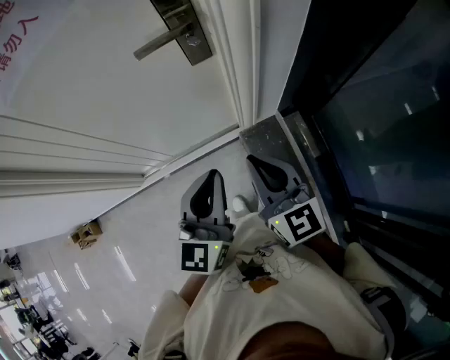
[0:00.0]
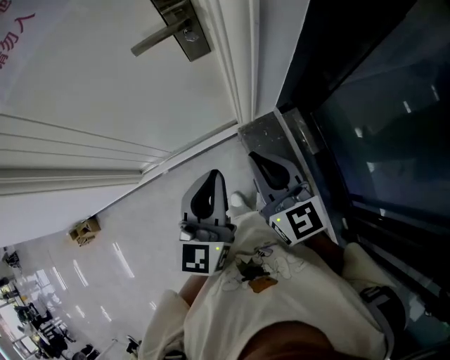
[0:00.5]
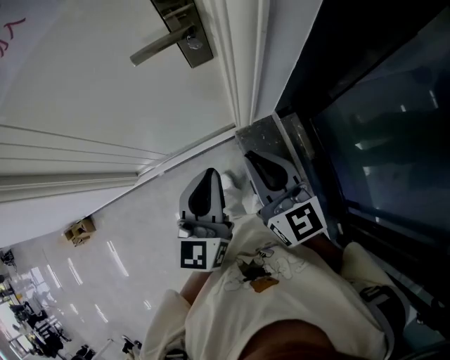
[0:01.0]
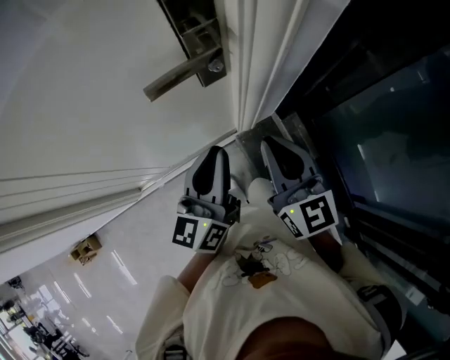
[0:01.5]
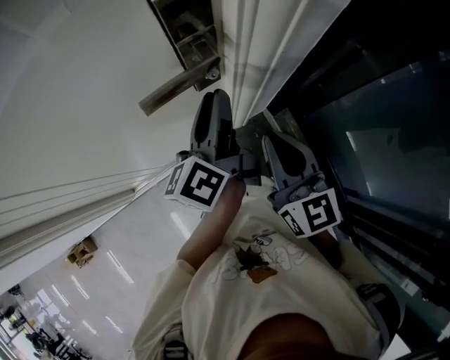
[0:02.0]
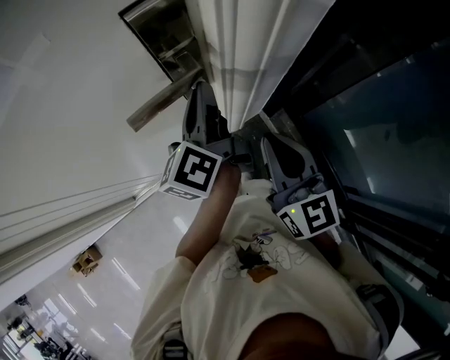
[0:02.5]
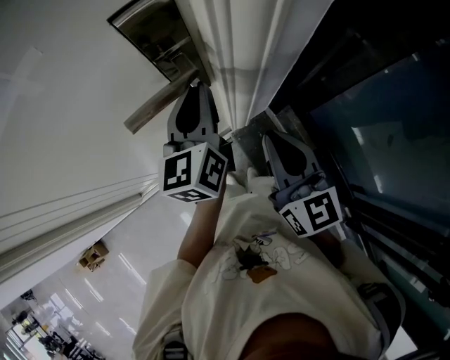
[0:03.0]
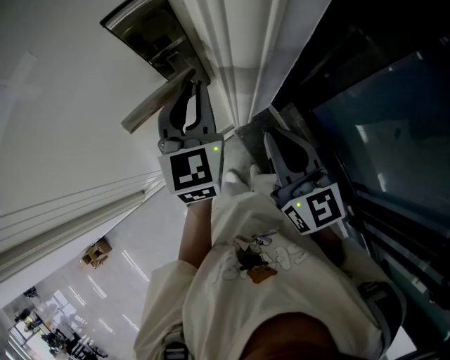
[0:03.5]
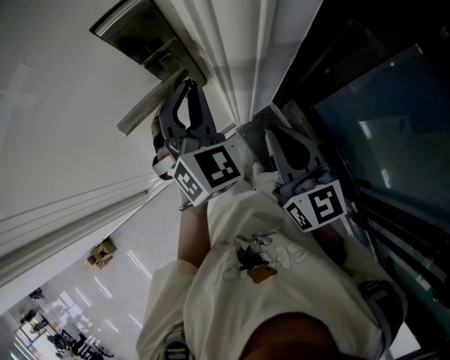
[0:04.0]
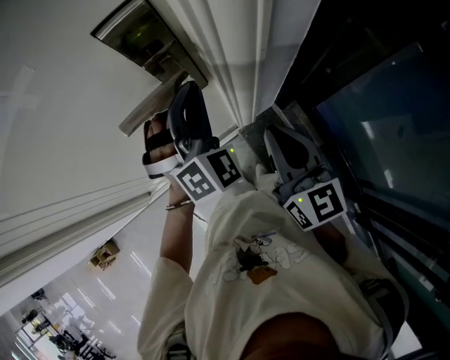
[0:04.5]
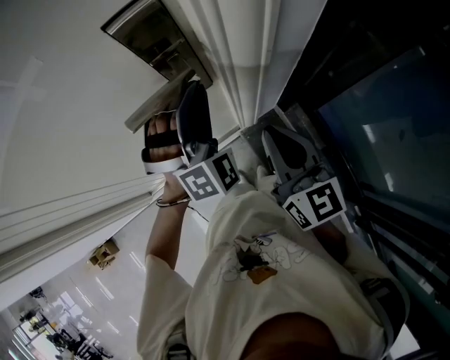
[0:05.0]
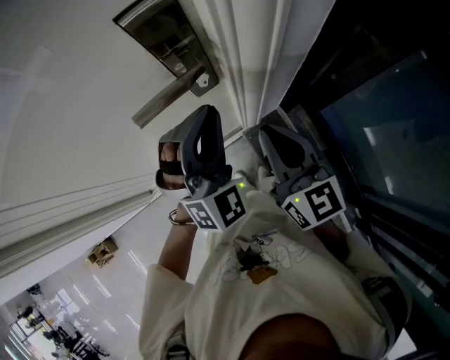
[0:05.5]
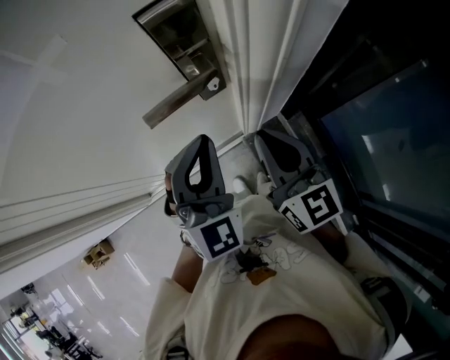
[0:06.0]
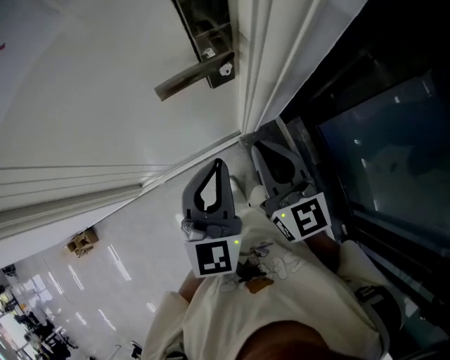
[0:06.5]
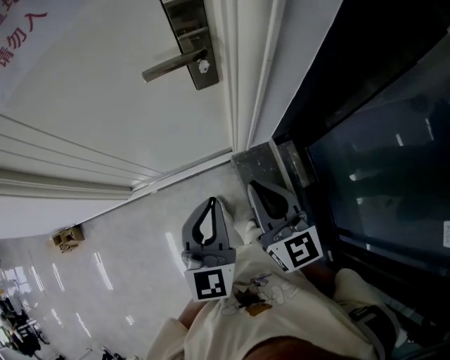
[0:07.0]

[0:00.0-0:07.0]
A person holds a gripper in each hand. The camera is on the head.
0:00.0 to 0:02.0: The right gripper is displaced forward by roughly 15 cm, while the left gripper heads forward, covering about 30 cm, rotates around the line of its fingers by about 50 degrees, counterclockwise from behind, and opens up.
0:02.0 to 0:03.5: The left gripper rotates around the line of its fingers by some 60 degrees, clockwise from behind.
0:03.5 to 0:05.0: The left gripper twists some 60 degrees clockwise, seen from behind.
0:05.0 to 0:07.0: The right gripper moves backward, approximately 15 cm, while the left gripper travels backward by about 25 cm, and twists some 70 degrees counterclockwise, seen from behind.

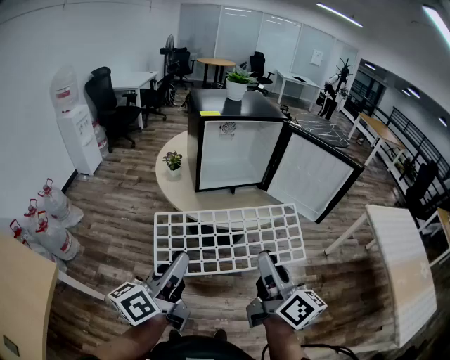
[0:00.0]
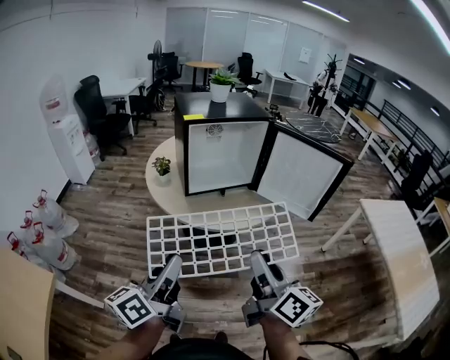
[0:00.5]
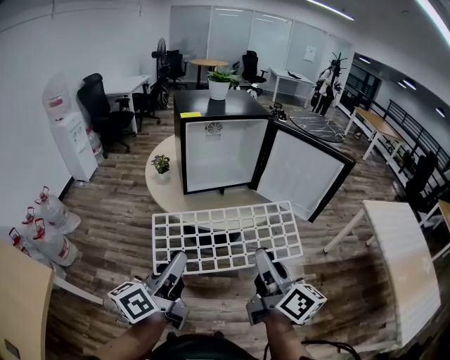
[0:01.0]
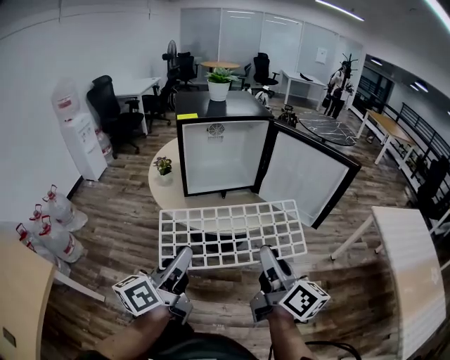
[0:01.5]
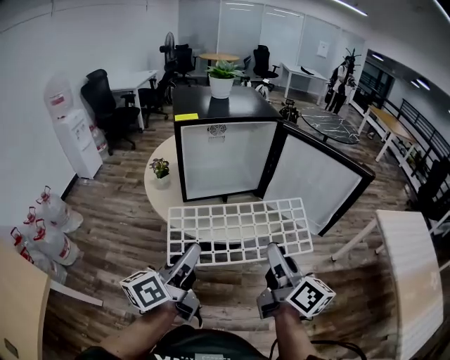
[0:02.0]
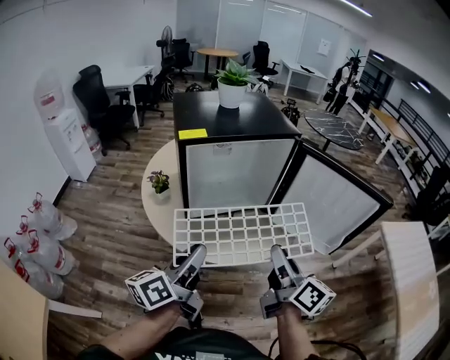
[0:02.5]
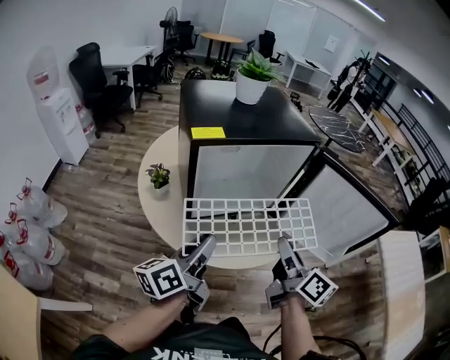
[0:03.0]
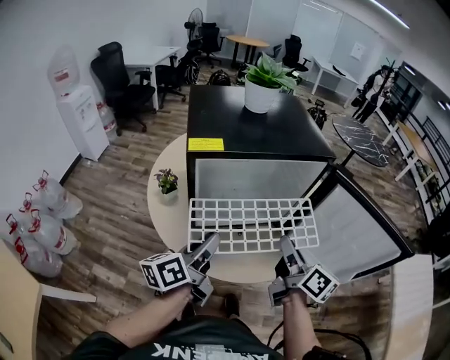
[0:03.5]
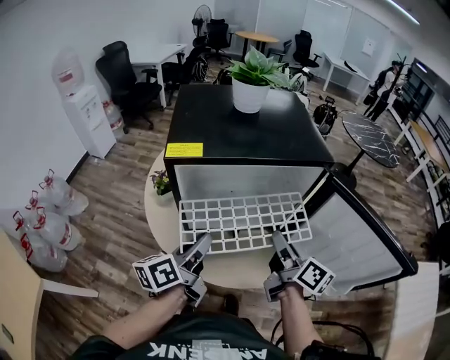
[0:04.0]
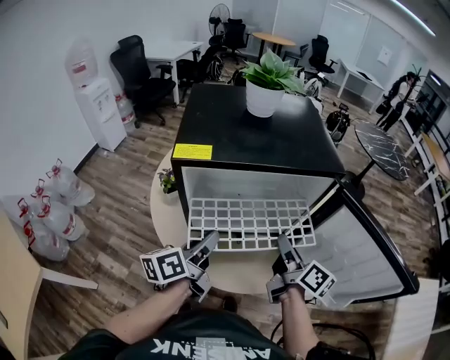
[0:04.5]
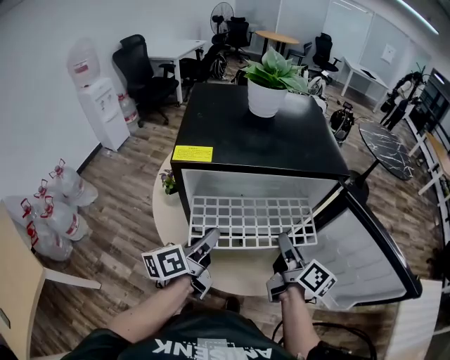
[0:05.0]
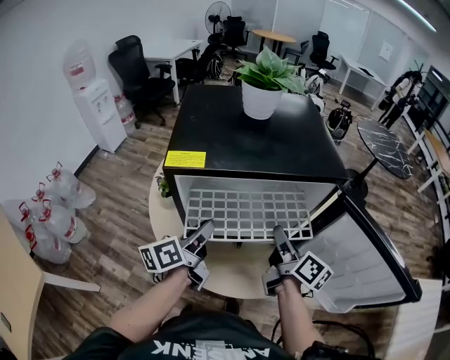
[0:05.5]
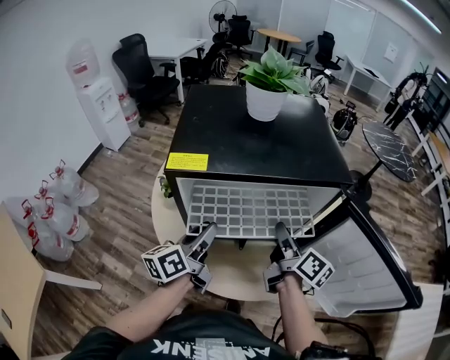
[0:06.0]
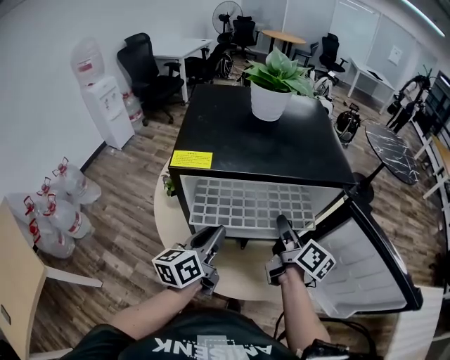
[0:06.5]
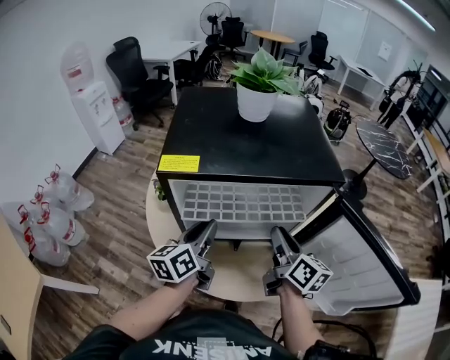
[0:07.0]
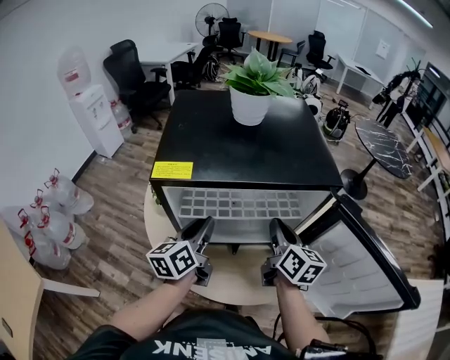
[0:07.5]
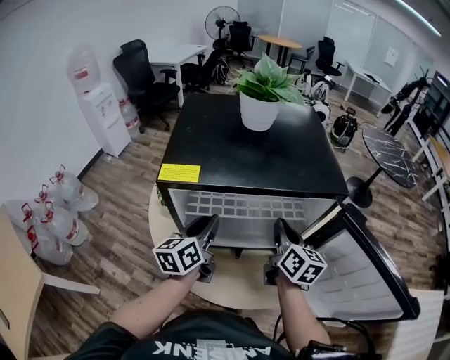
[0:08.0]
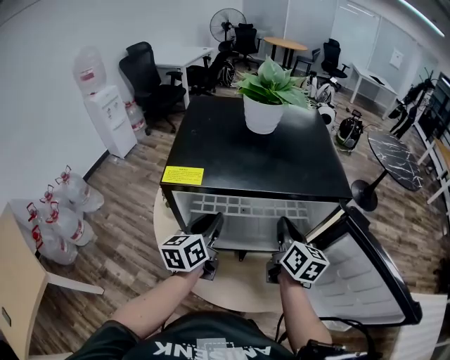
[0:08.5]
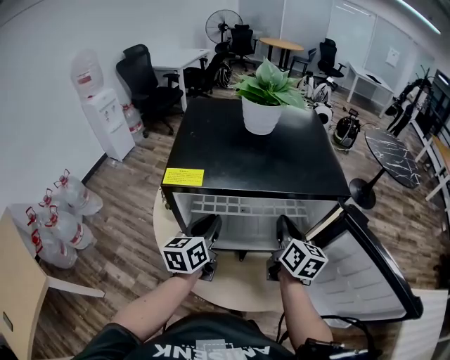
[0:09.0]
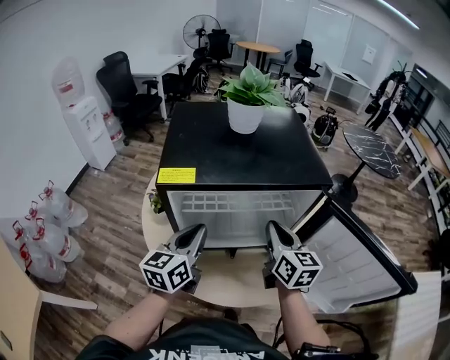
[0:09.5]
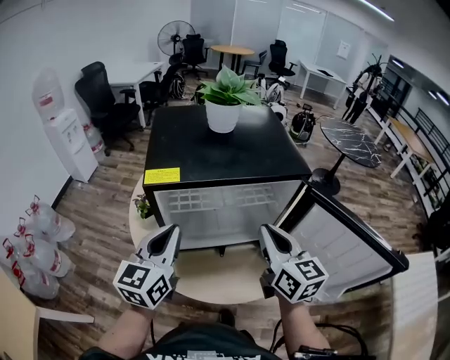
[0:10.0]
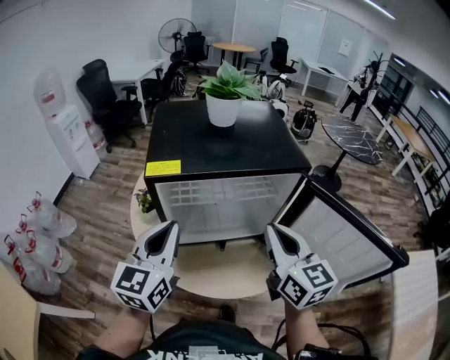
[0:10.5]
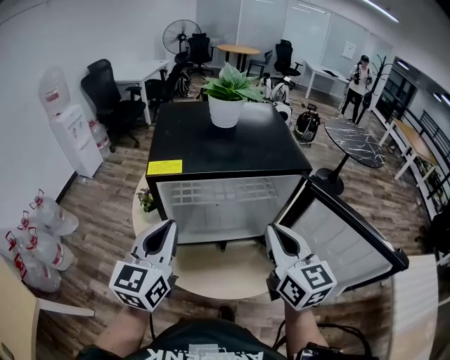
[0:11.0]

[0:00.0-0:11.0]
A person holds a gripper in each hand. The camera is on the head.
0:00.0 to 0:02.0: The two grippers go roughly 20 cm forward and to the right.
0:02.0 to 0:03.5: Both grippers travel together forward, some 25 cm.
0:03.5 to 0:05.5: The right gripper heads forward and downward, covering about 15 cm. The left gripper is displaced forward by roughly 10 cm.
0:05.5 to 0:07.5: The left gripper rotates approximately 20 degrees. The right gripper changes place by some 5 cm, and changes its angle by about 20 degrees.
0:07.5 to 0:09.0: There are only small adjustments of the grippers.
0:09.0 to 0:11.0: The right gripper is displaced backward and upward by about 20 cm, and turns by about 20 degrees. Meanwhile the left gripper goes some 20 cm upward and backward, and swivels roughly 20 degrees.

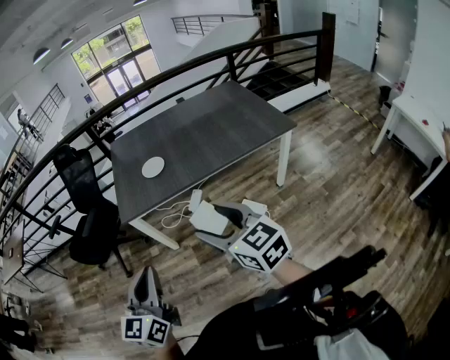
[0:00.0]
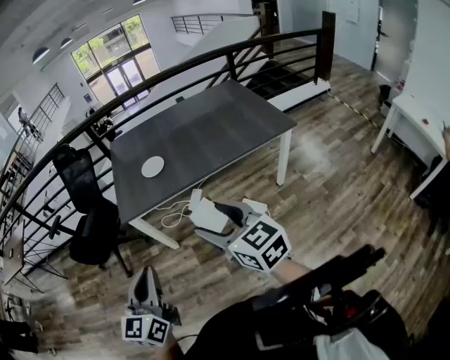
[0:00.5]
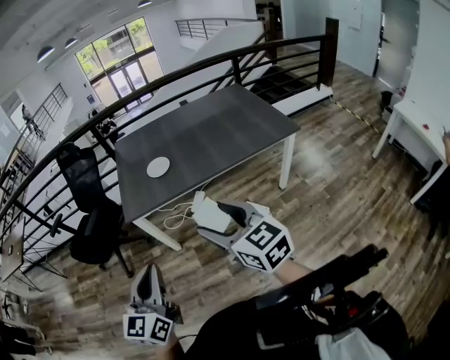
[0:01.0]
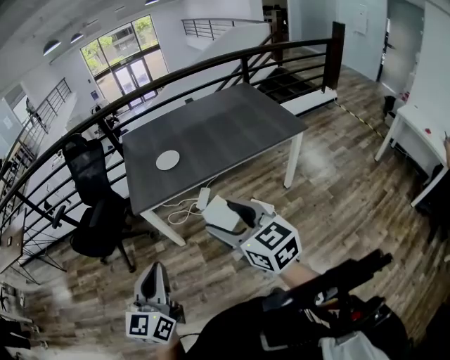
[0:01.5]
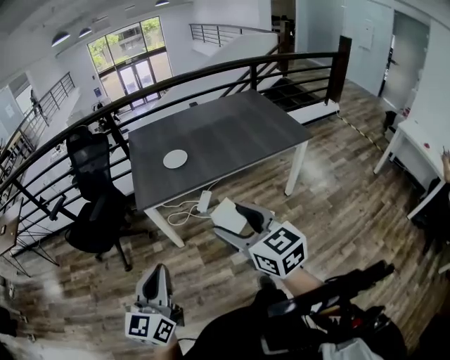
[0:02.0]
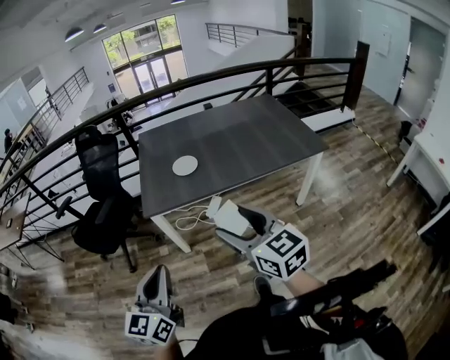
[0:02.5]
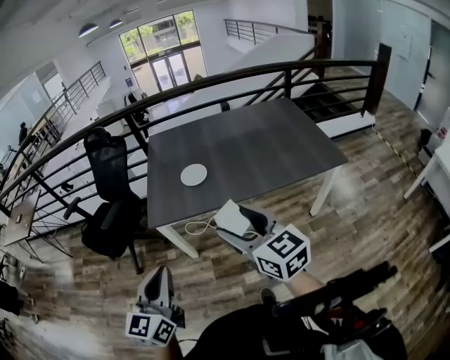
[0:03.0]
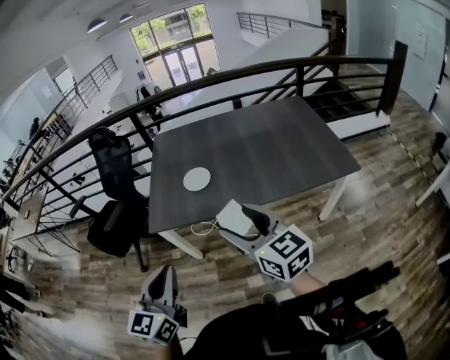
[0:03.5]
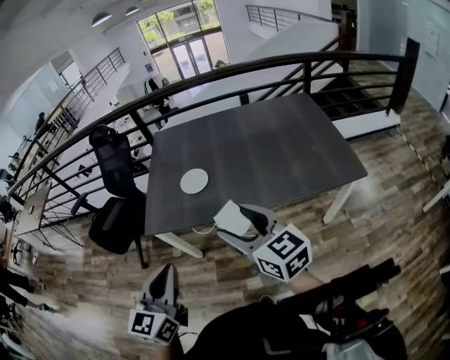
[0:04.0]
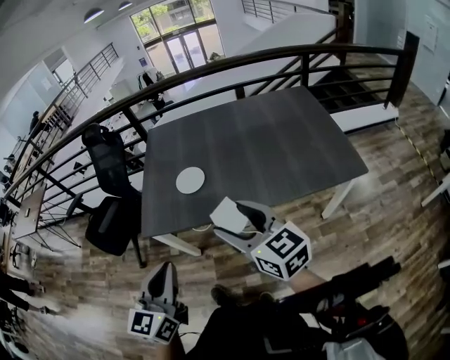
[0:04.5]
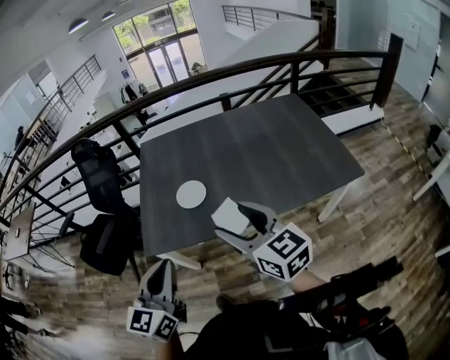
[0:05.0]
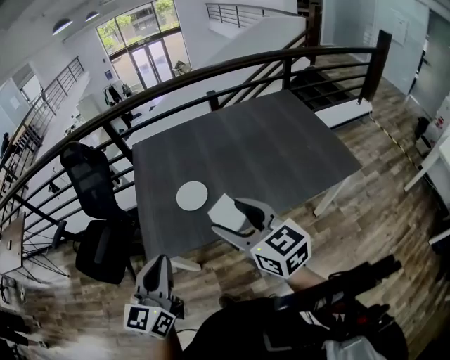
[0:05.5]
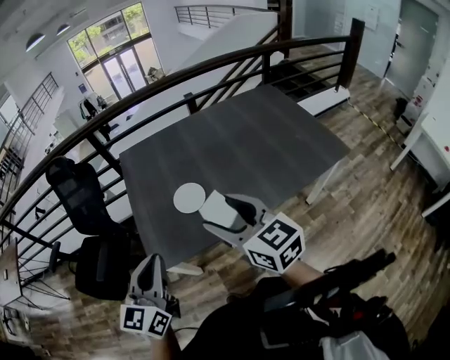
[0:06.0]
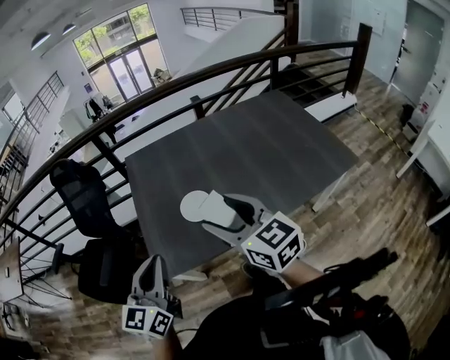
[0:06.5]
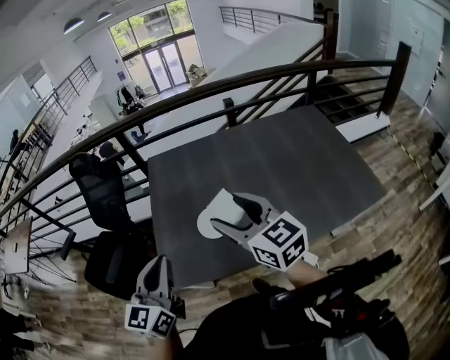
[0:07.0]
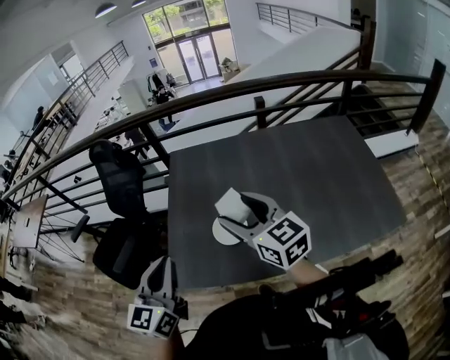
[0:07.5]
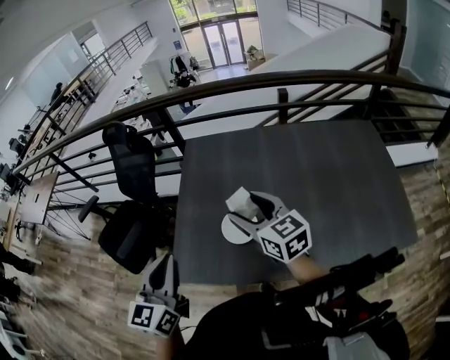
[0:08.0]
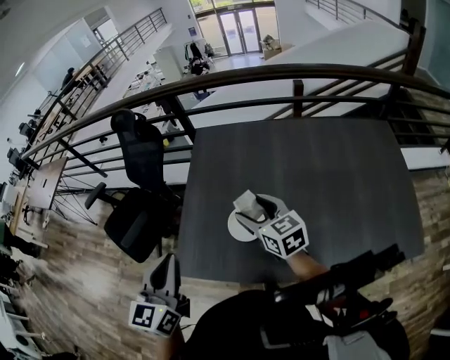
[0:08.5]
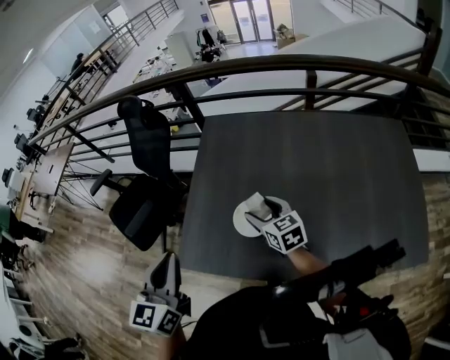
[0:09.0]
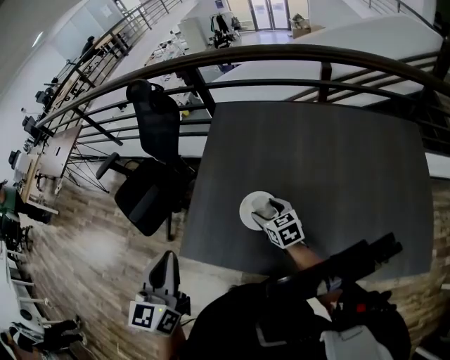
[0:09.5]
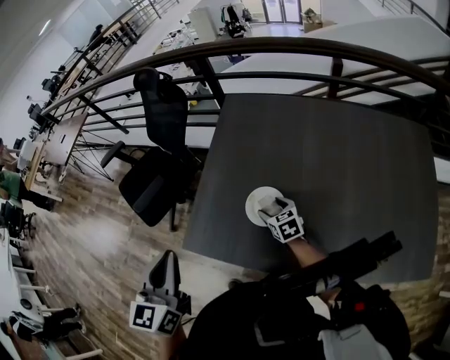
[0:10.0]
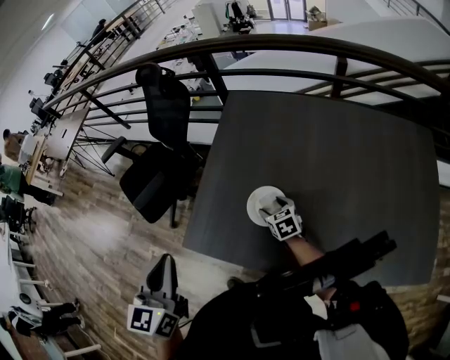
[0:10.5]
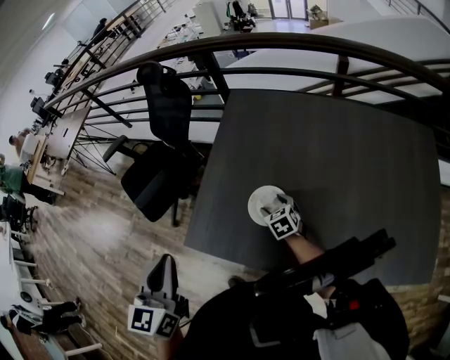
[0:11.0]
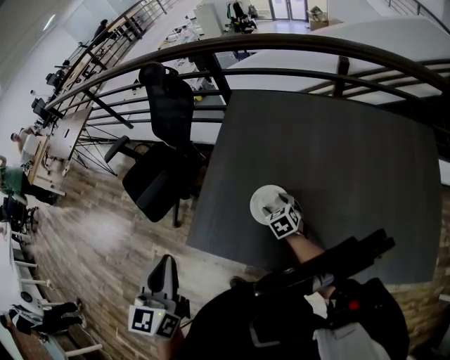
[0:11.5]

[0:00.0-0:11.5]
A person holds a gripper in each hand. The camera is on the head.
0:00.0 to 0:02.0: The grippers both shift to the left by about 10 cm.
0:02.0 to 0:04.0: Both grippers move forward and to the right, some 30 cm.
0:04.0 to 0:06.0: The grippers both shift forward and to the left by roughly 25 cm.
0:06.0 to 0:07.5: The right gripper shifts some 20 cm forward, while the left gripper is displaced forward by approximately 10 cm.
0:07.5 to 0:09.5: The right gripper moves downward, about 25 cm, and turns by some 30 degrees. The left gripper swivels about 20 degrees.
0:09.5 to 0:11.5: The right gripper heads downward, covering approximately 10 cm.
